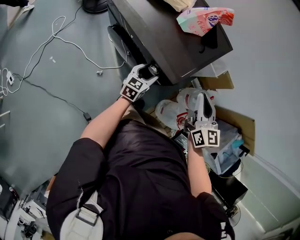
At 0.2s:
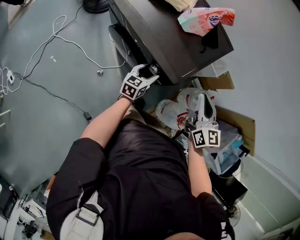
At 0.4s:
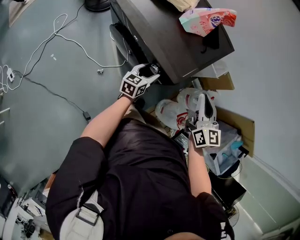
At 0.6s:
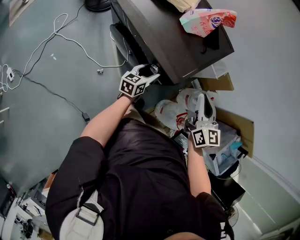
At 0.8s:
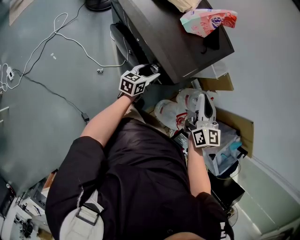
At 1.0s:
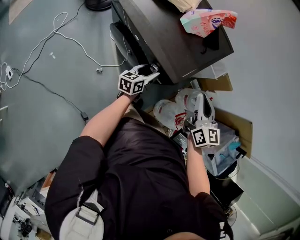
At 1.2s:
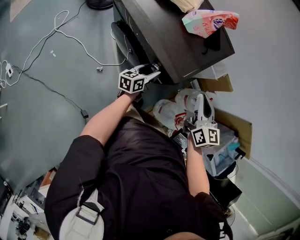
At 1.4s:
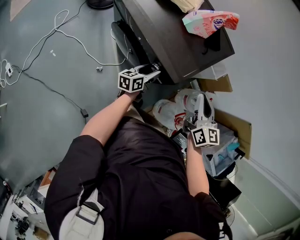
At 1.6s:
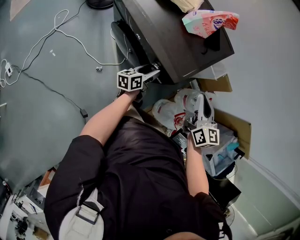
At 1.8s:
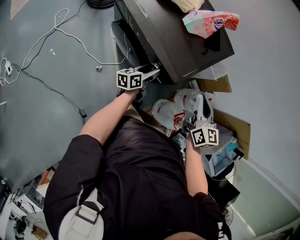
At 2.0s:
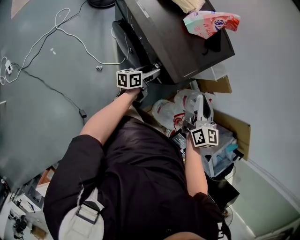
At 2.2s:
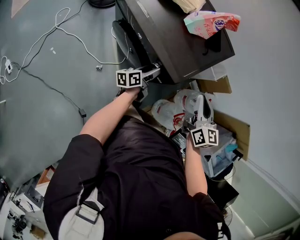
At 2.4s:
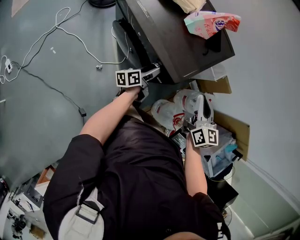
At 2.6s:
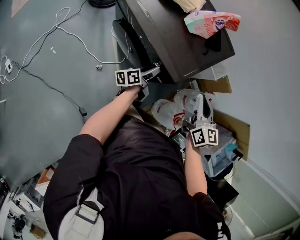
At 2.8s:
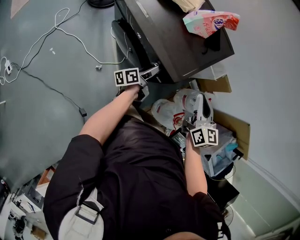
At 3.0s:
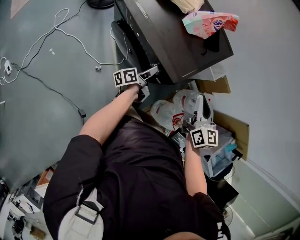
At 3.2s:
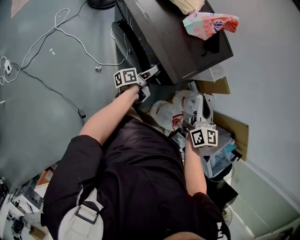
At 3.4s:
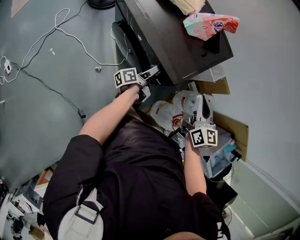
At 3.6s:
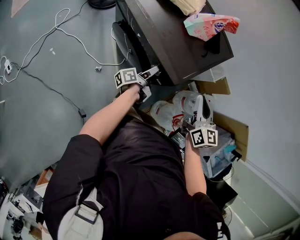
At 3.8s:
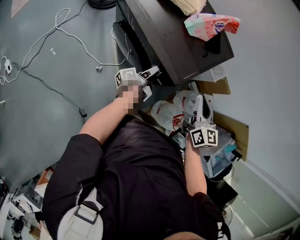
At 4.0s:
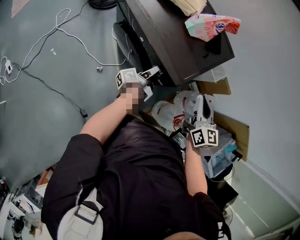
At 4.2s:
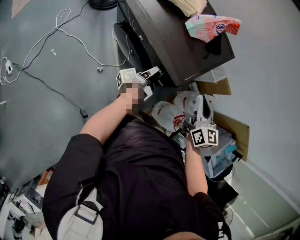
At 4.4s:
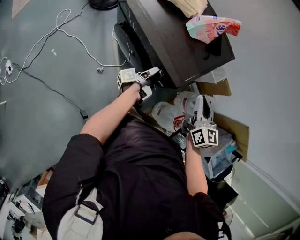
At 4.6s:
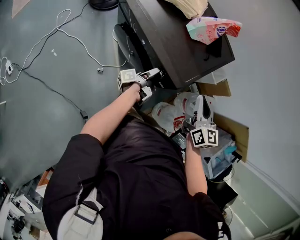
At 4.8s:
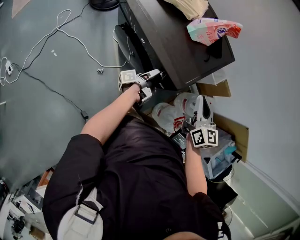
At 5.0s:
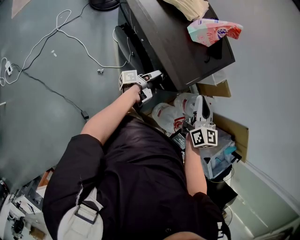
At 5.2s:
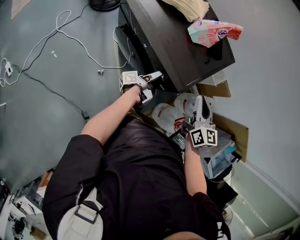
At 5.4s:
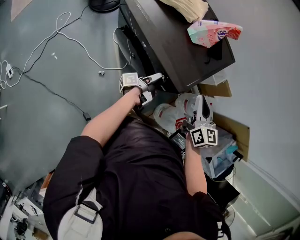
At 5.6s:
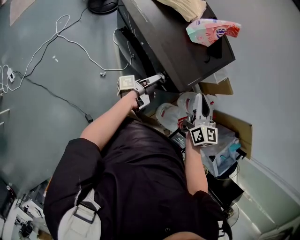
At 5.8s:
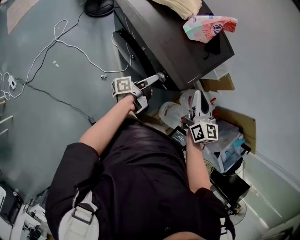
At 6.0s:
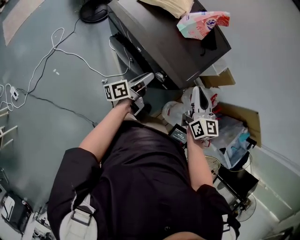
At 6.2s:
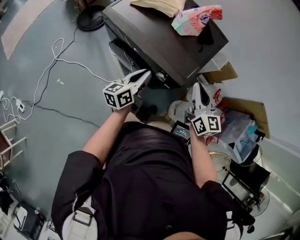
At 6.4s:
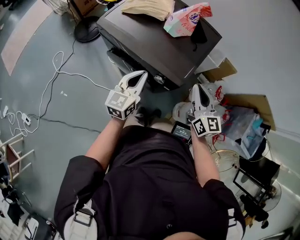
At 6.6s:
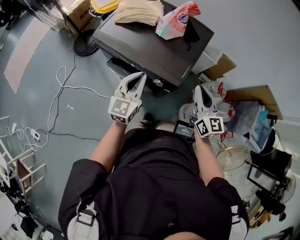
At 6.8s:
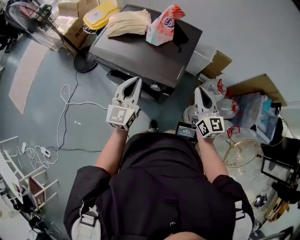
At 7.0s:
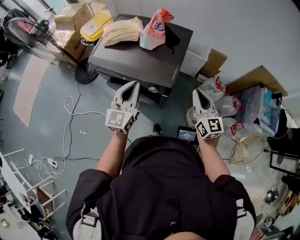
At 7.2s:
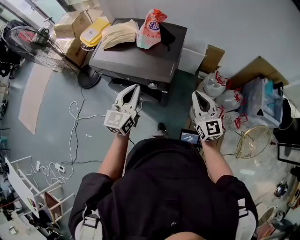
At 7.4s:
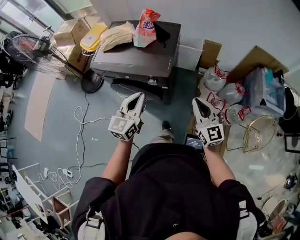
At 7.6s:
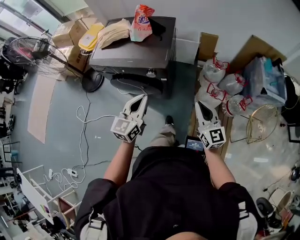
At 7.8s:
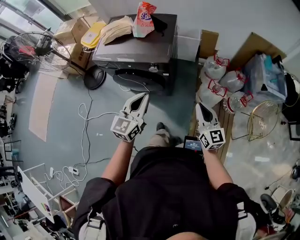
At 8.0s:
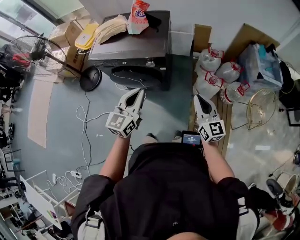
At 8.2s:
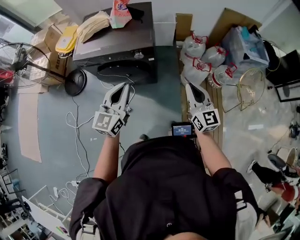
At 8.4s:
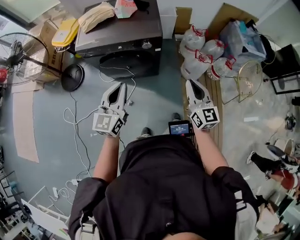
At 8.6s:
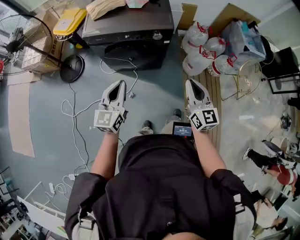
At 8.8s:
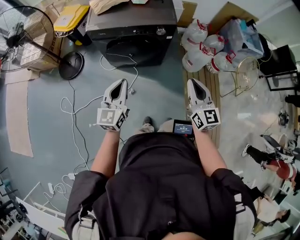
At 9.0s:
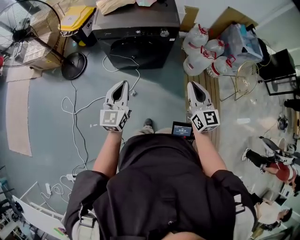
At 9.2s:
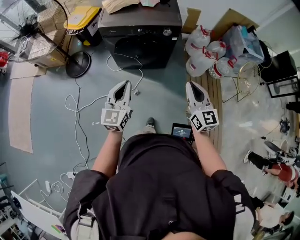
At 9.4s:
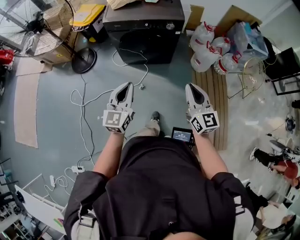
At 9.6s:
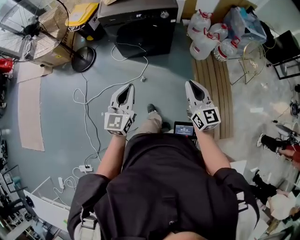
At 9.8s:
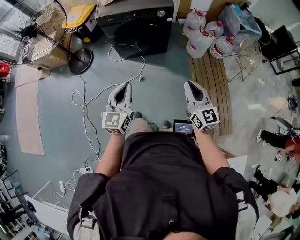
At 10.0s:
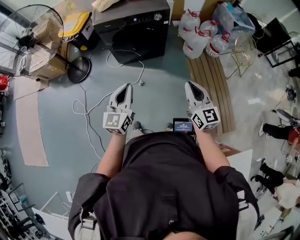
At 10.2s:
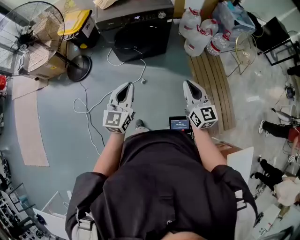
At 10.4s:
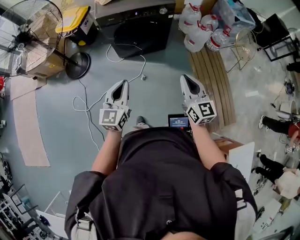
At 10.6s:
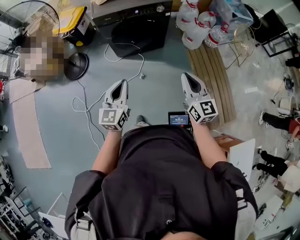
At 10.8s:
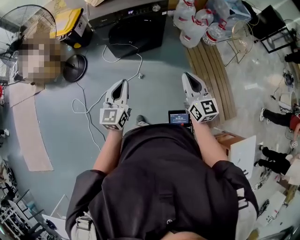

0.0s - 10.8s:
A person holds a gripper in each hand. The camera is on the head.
0.0s - 1.6s: The left gripper swivels about 40 degrees.
1.6s - 3.0s: The left gripper swivels some 30 degrees.
3.0s - 4.6s: The left gripper rotates roughly 30 degrees.
4.6s - 6.2s: The left gripper travels upward and to the left by roughly 15 cm, rotates around the line of its fingers by some 70 degrees, clockwise from behind, and closes up.
6.2s - 7.8s: The left gripper moves backward and upward, approximately 25 cm, and rolls clockwise, seen from behind, by about 40 degrees. The right gripper shifts approximately 30 cm backward, and turns by about 20 degrees.
7.8s - 9.2s: Both grippers travel together to the left and backward, roughly 35 cm.
9.2s - 10.8s: Both grippers travel together backward and to the left, about 15 cm.

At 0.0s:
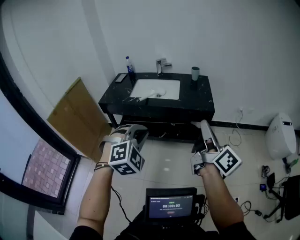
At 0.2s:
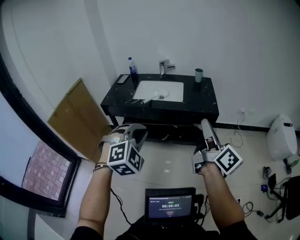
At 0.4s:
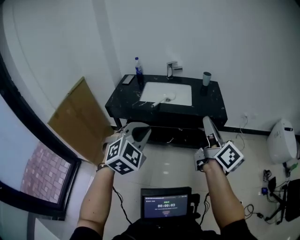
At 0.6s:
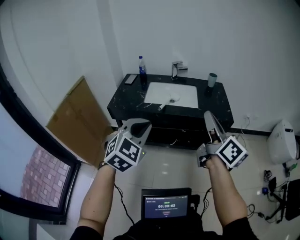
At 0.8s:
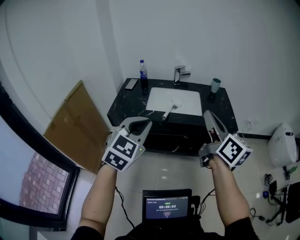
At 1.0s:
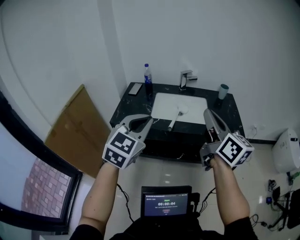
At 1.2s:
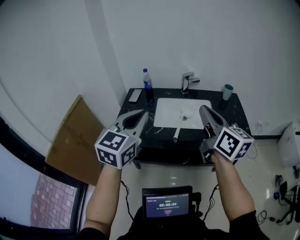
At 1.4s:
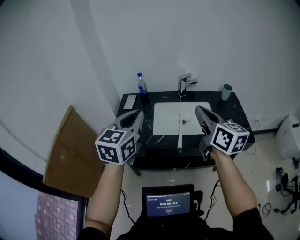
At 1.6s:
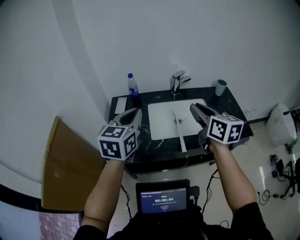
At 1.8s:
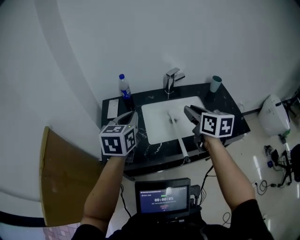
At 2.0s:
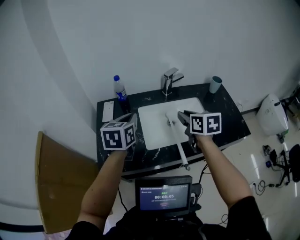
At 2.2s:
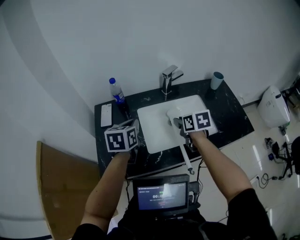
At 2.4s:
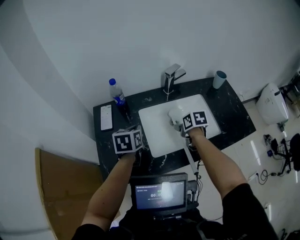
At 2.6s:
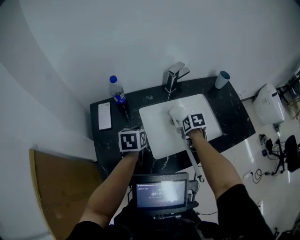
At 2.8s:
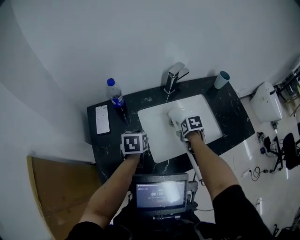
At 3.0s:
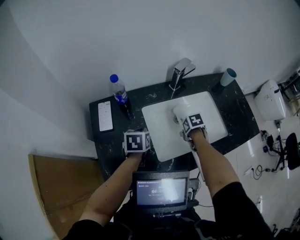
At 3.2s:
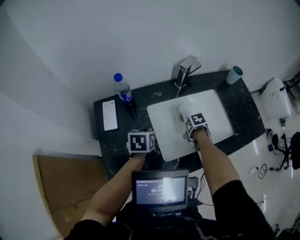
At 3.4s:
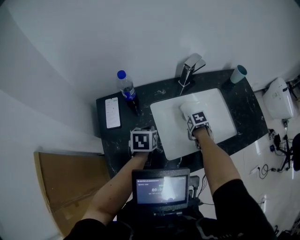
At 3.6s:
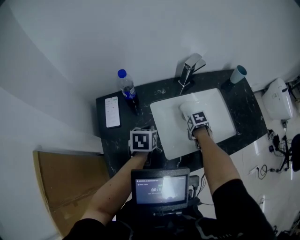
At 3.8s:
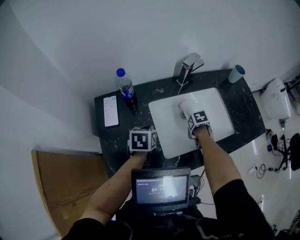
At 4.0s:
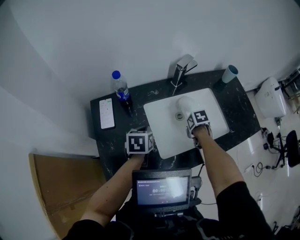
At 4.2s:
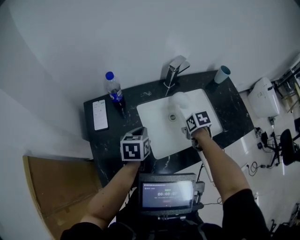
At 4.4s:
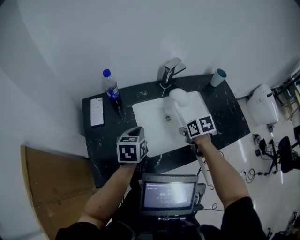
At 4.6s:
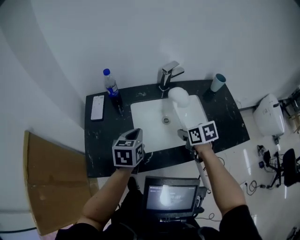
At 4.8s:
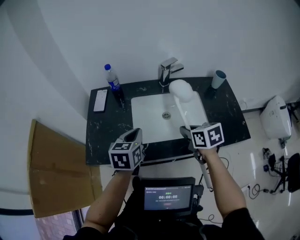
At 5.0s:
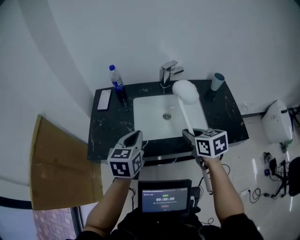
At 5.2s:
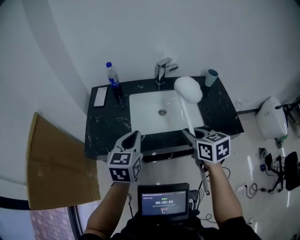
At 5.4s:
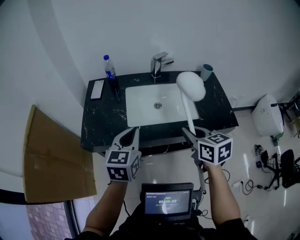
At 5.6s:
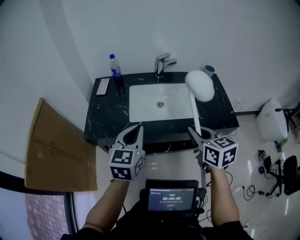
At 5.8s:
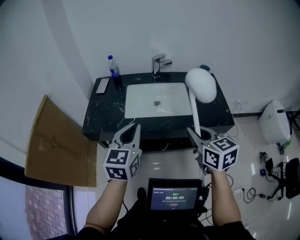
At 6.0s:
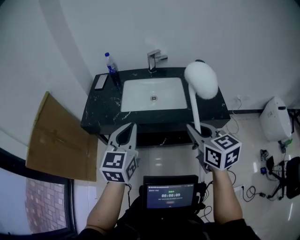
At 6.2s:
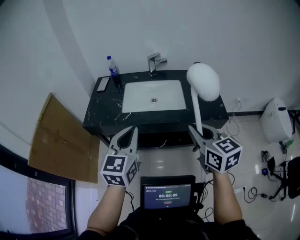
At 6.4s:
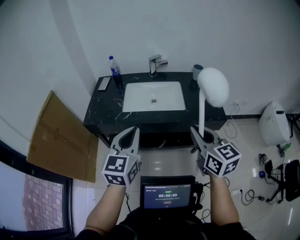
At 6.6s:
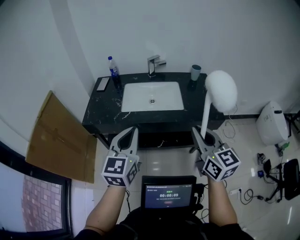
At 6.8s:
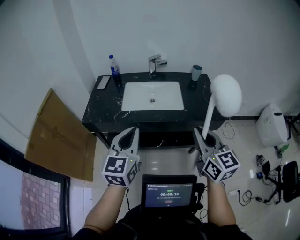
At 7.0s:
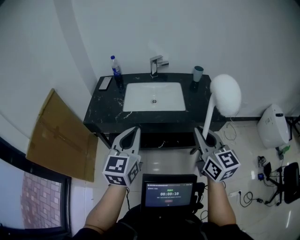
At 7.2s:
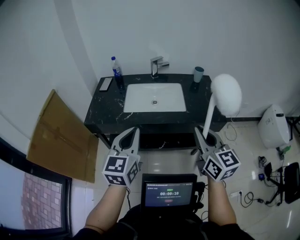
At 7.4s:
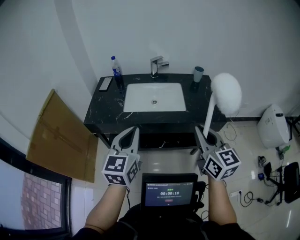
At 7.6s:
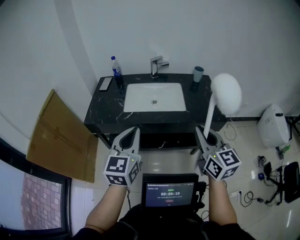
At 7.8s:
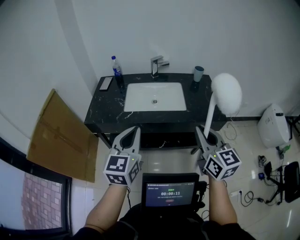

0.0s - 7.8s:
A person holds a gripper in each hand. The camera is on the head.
0.0s - 1.6s: The pair of grippers is taken forward and to the left, roughly 70 cm. The right gripper rotates some 50 degrees. Meanwhile the left gripper rotates around the line of its fingers by some 60 degrees, counterclockwise from behind.
1.6s - 3.2s: The two grippers go roughly 35 cm downward. The left gripper points its fingers roughly 40 degrees further downward, while the right gripper tilts its fingers approximately 70 degrees downward, and opens its fingers.
3.2s - 4.6s: The right gripper travels upward by approximately 15 cm, points its fingers some 30 degrees further upward, and closes. The left gripper changes place by roughly 15 cm.
4.6s - 6.2s: The pair of grippers is taken backward, roughly 50 cm. The right gripper moves upward, approximately 20 cm, and tips its fingers upward by some 30 degrees. Meanwhile the left gripper changes its angle by roughly 30 degrees.
6.2s - 7.8s: The grippers move only a little.

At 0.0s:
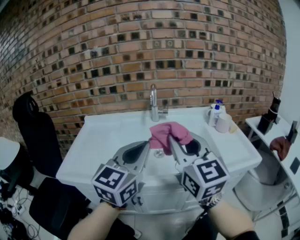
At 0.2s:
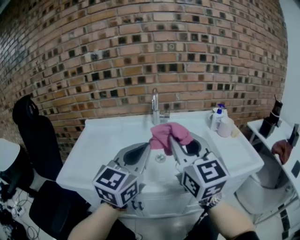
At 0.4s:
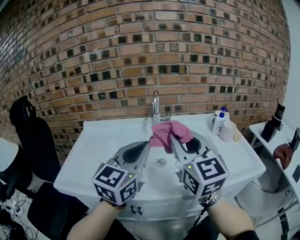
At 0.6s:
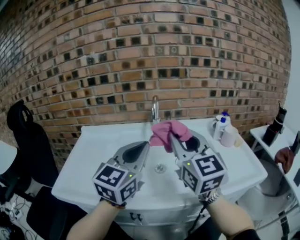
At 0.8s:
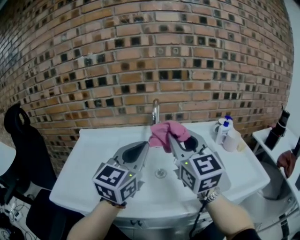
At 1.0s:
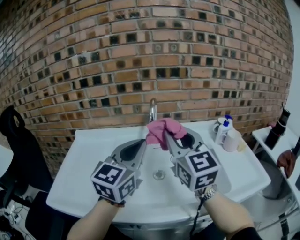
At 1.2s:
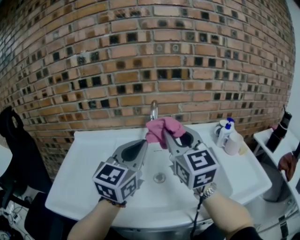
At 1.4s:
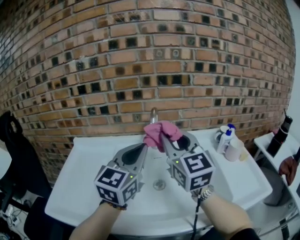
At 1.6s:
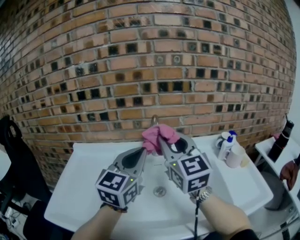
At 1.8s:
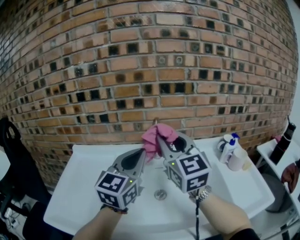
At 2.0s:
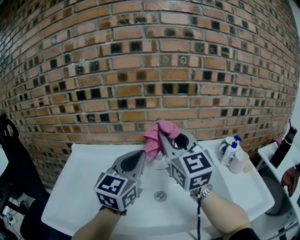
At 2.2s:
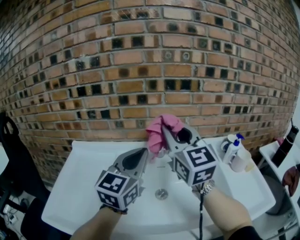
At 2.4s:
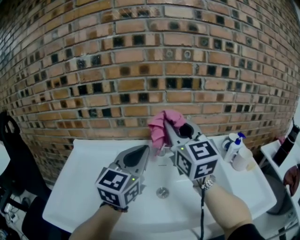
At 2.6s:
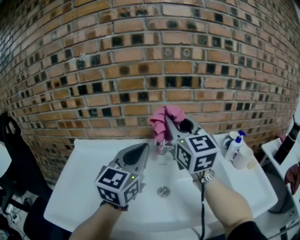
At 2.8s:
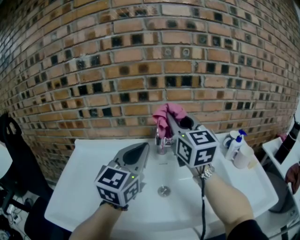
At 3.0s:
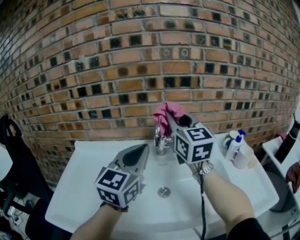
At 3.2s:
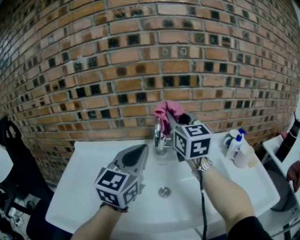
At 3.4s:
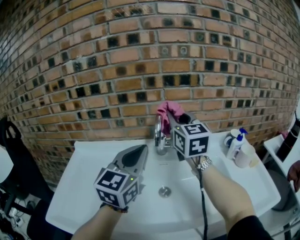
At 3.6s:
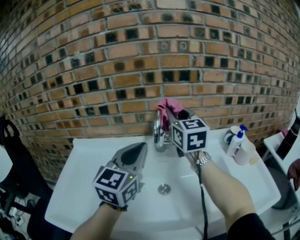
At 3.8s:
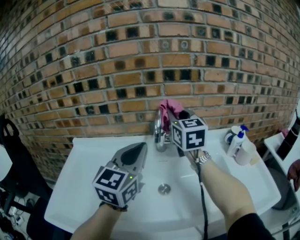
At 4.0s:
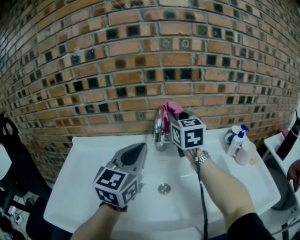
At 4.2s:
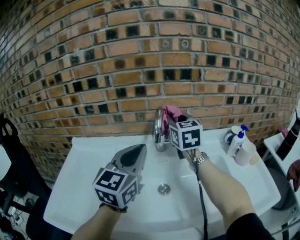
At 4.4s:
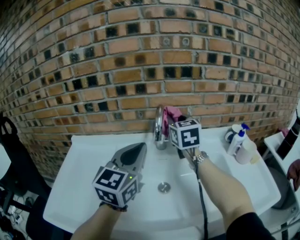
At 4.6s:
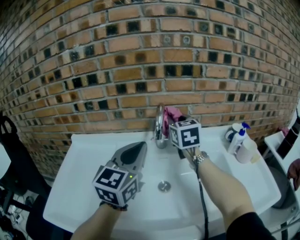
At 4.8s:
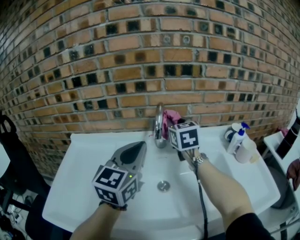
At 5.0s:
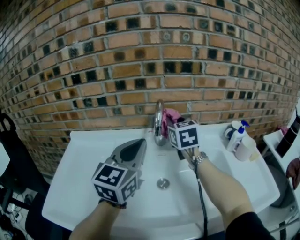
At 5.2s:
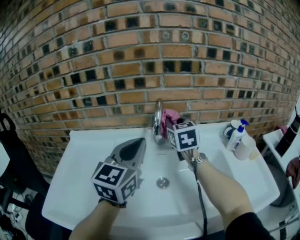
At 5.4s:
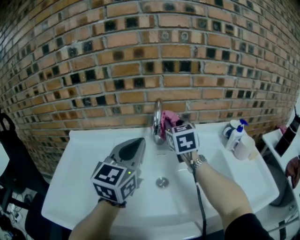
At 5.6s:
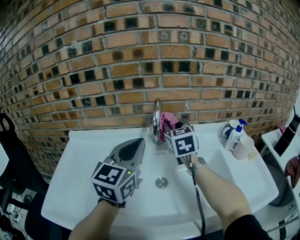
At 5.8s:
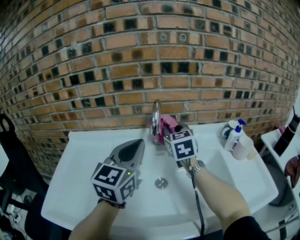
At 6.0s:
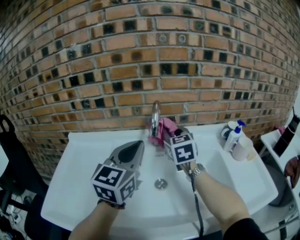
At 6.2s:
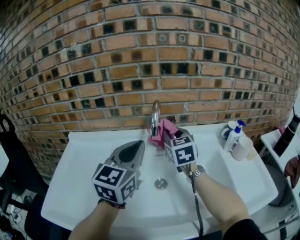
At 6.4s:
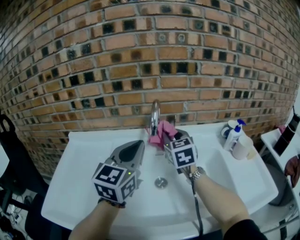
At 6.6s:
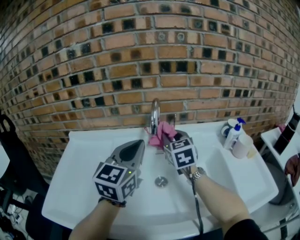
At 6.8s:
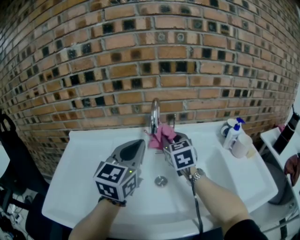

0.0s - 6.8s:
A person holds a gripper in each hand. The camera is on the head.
0.0s - 1.4s: Both grippers travel together forward, about 20 cm.
1.4s - 2.8s: The right gripper travels forward by some 10 cm.
2.8s - 4.0s: The right gripper moves forward and downward, about 10 cm.
4.0s - 5.4s: The right gripper shifts some 10 cm downward.
5.4s - 6.8s: The right gripper heads downward, covering approximately 5 cm.
